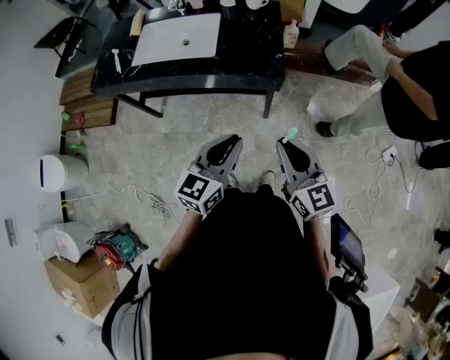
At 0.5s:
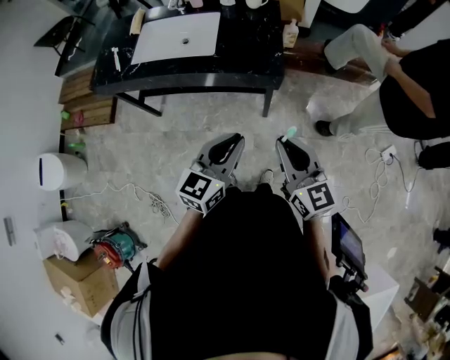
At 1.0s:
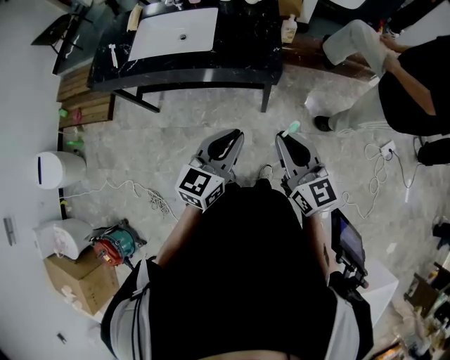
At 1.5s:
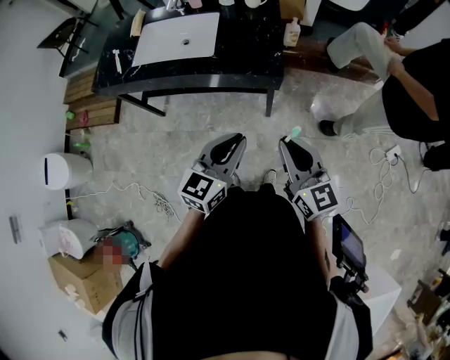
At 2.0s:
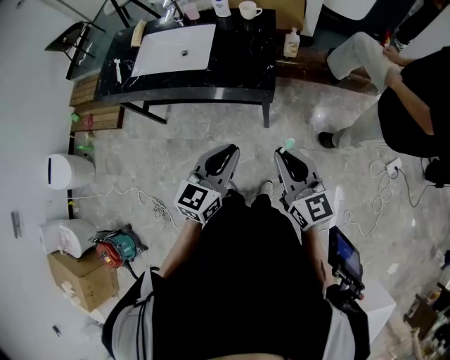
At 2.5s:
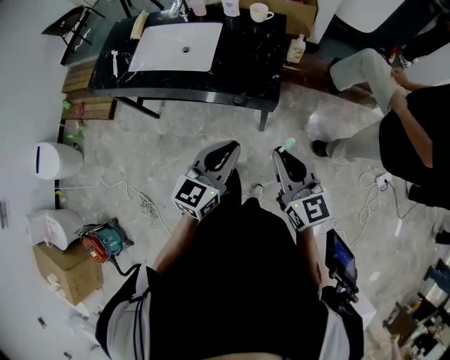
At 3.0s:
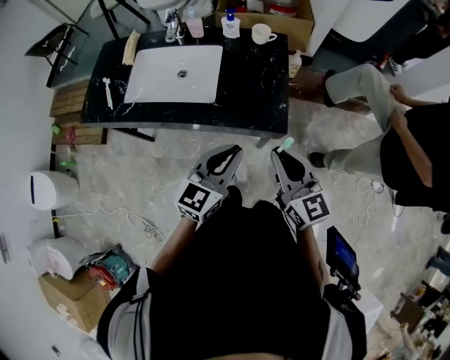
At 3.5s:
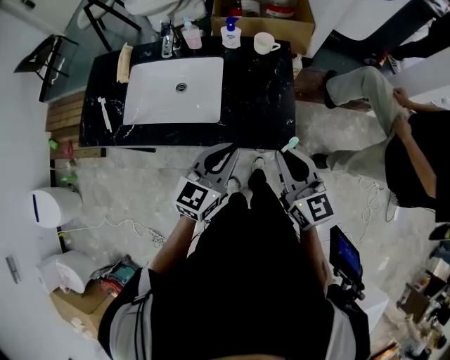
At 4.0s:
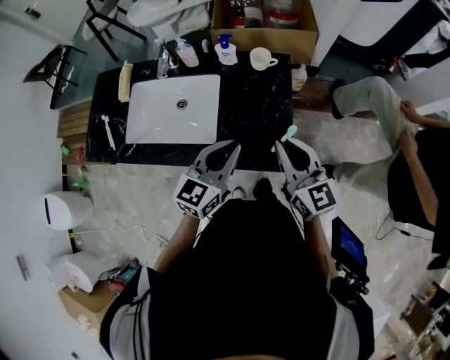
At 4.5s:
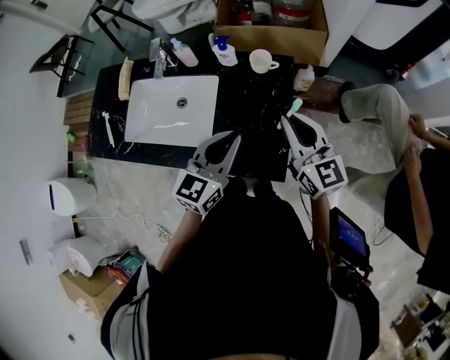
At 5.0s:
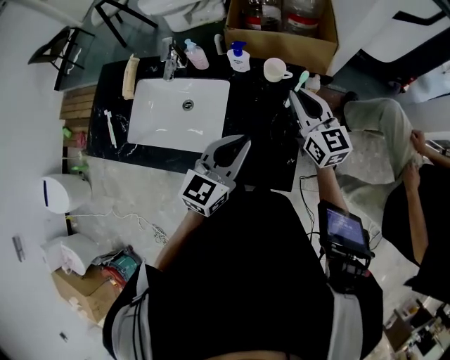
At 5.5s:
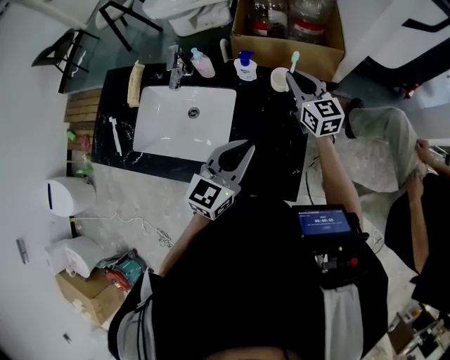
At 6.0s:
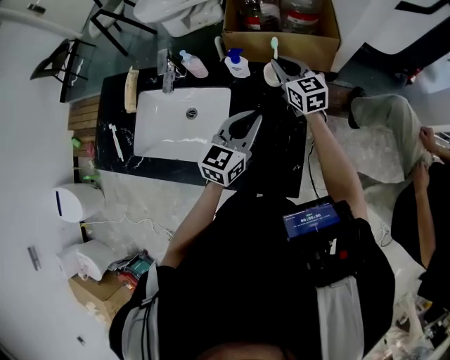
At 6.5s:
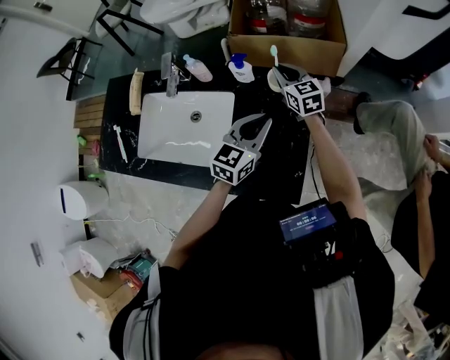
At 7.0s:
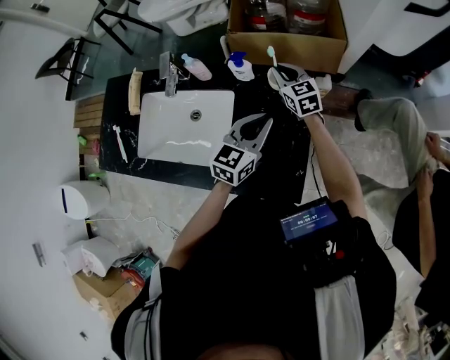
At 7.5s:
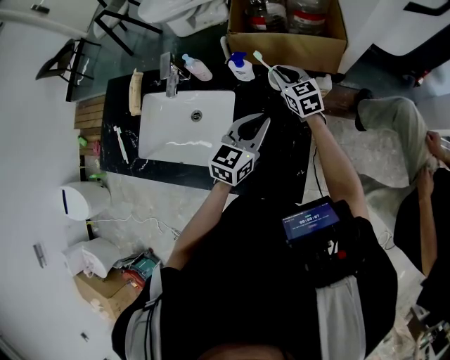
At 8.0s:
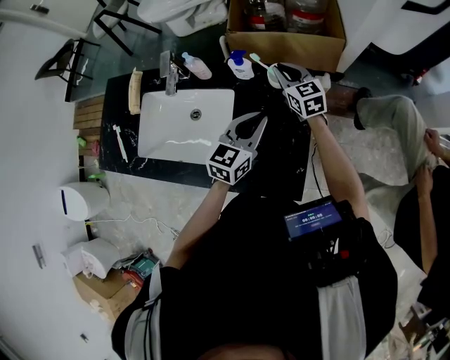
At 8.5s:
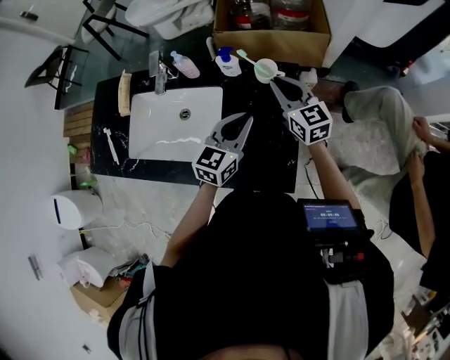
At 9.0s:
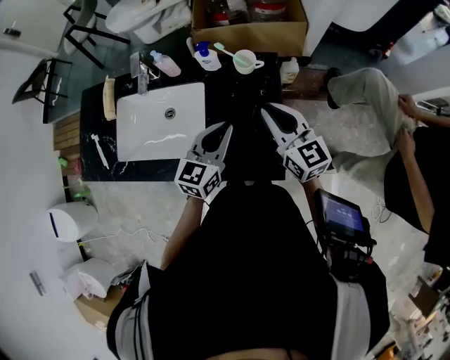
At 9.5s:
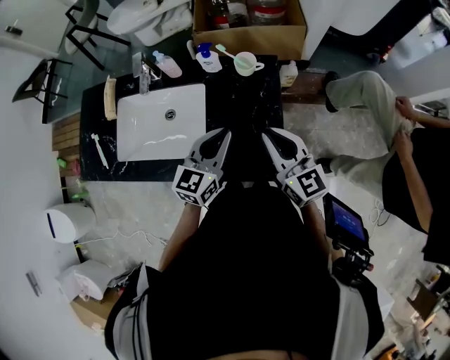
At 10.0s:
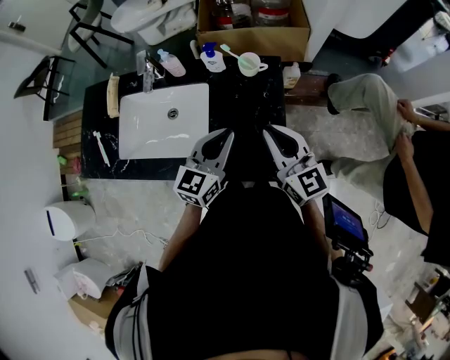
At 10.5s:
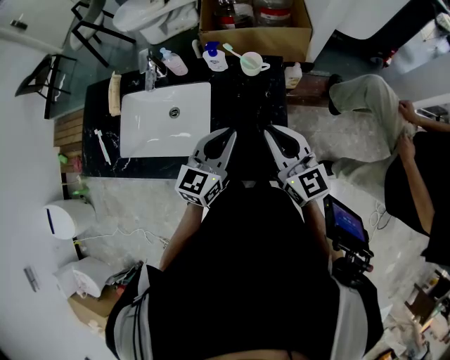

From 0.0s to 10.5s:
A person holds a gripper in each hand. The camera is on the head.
From 0.0s to 2.0s: Both grippers travel together to the right, about 5 cm.
From 2.0s to 4.0s: Both grippers travel together forward, some 35 cm.
From 4.0s to 6.5s: The right gripper goes approximately 35 cm forward; the left gripper travels forward by about 20 cm.
From 6.5s to 8.5s: The right gripper travels backward and upward by some 10 cm.
From 8.5s to 10.5s: The right gripper goes approximately 20 cm backward. Meanwhile the left gripper goes about 10 cm backward.

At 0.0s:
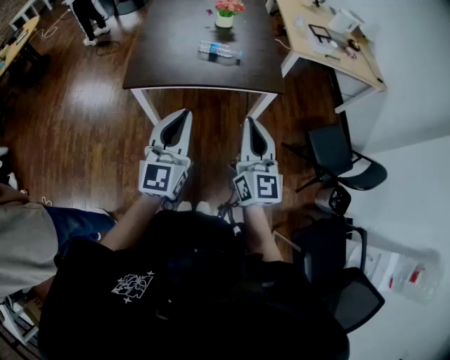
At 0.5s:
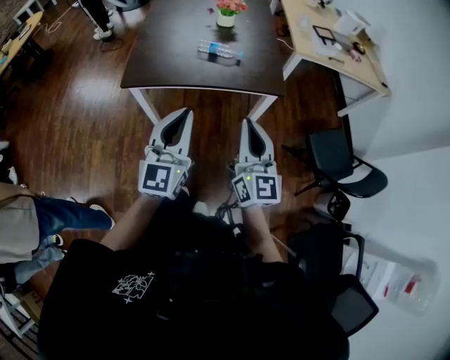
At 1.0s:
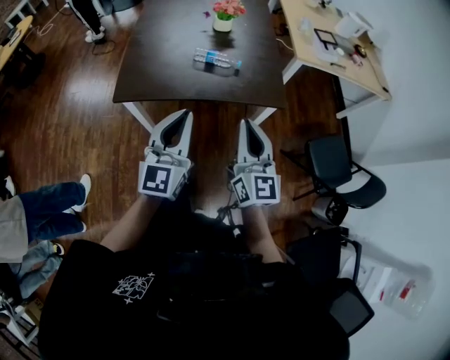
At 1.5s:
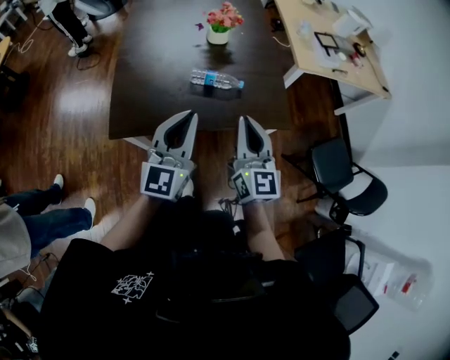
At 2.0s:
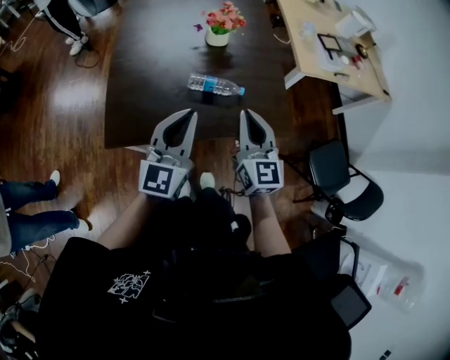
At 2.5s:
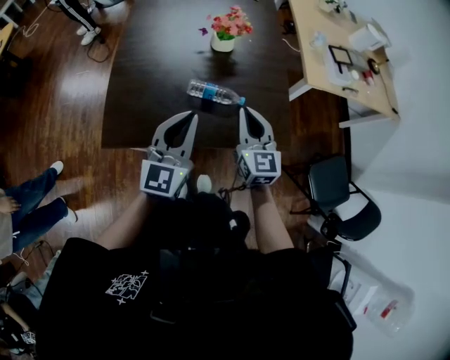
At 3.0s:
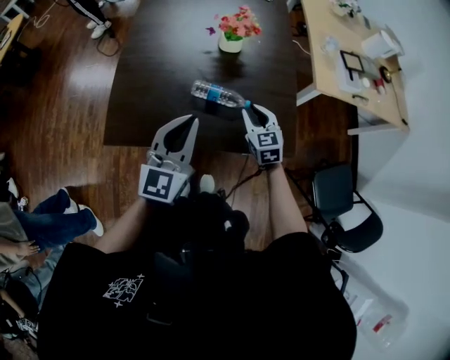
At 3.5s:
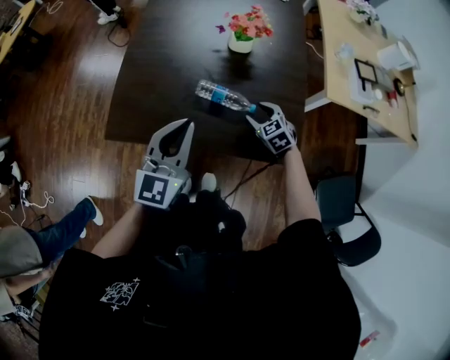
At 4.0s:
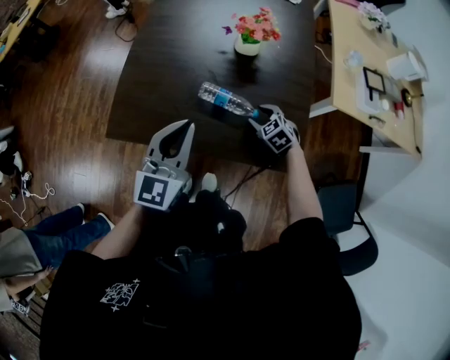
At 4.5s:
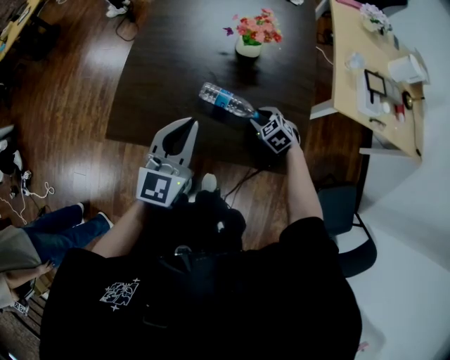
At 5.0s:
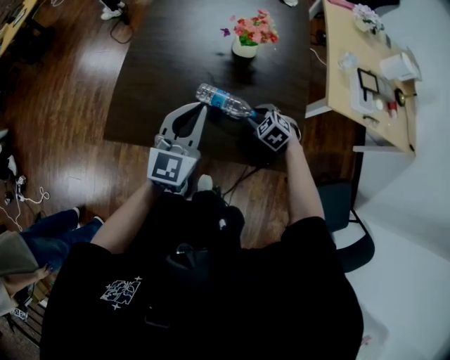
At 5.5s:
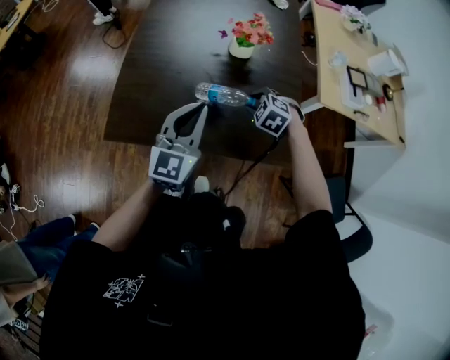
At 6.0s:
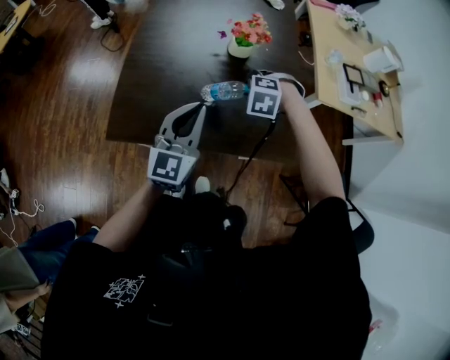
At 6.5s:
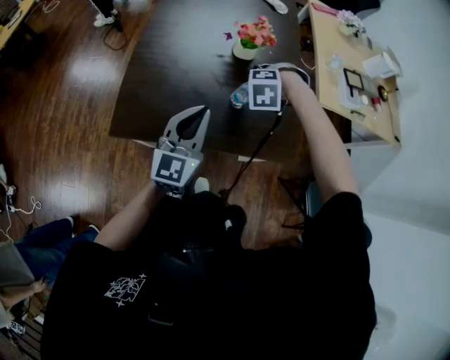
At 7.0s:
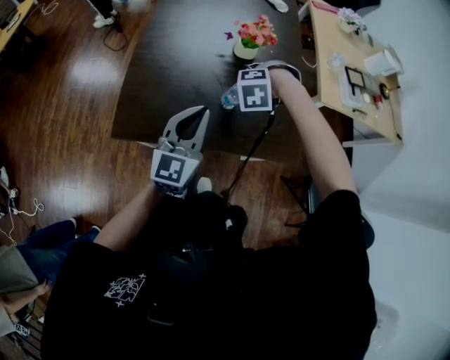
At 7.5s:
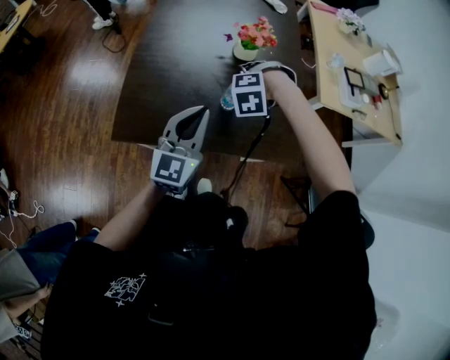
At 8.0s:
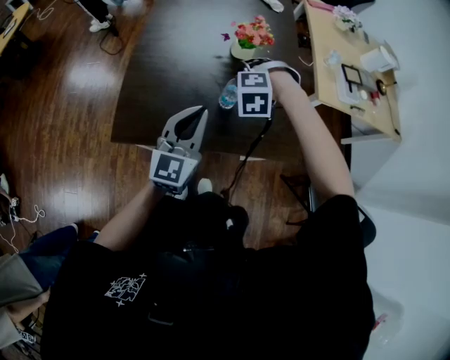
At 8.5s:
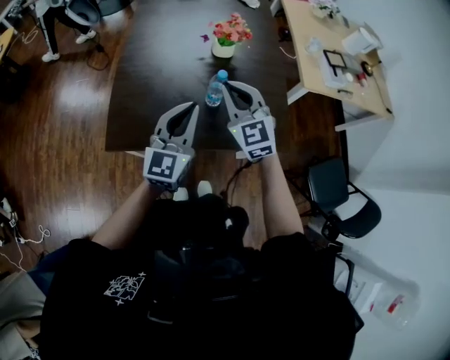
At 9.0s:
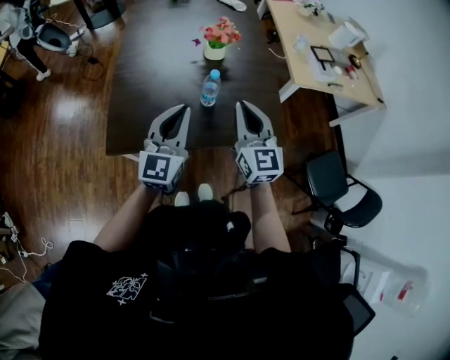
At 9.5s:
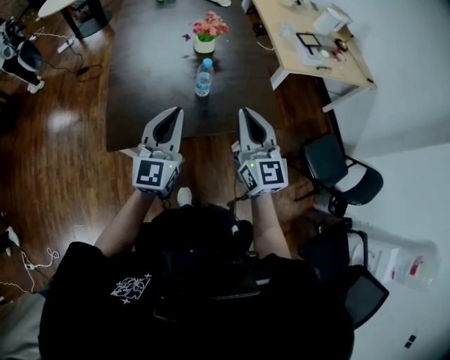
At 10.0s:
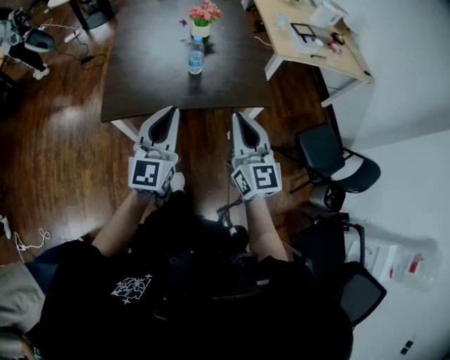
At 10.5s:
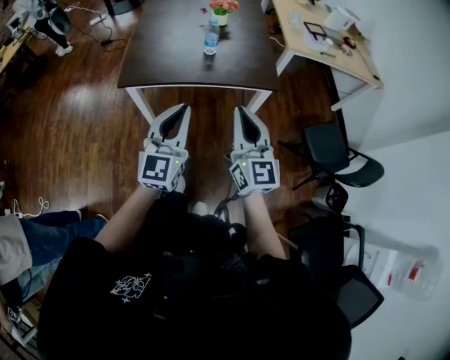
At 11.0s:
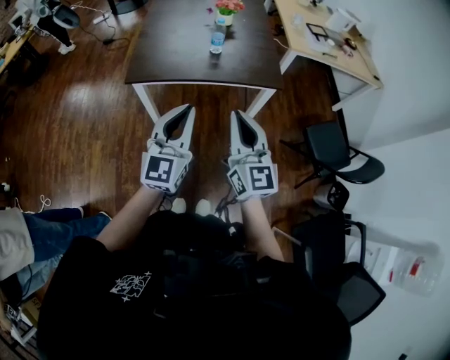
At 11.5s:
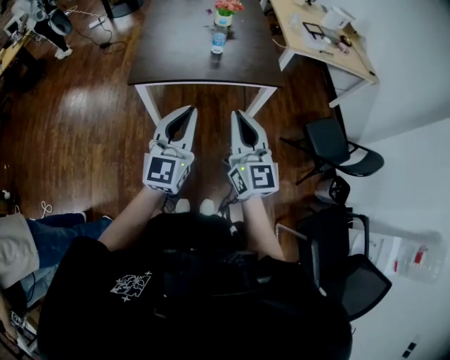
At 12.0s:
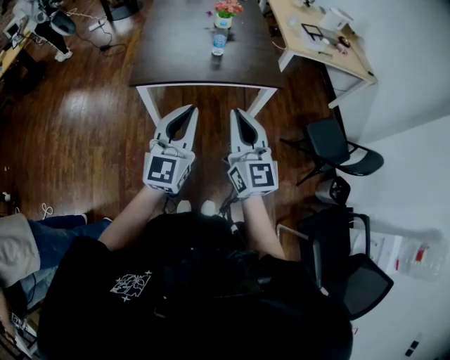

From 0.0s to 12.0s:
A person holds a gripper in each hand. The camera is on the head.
From 0.0s to 2.0s: Both grippers move forward, about 30 cm.
From 2.0s to 4.0s: The right gripper moves downward, some 30 cm, tilts its fingers some 50 degrees downward, and opens. Meanwhile the left gripper moves about 5 cm.
From 4.0s to 6.0s: The right gripper moves upward and to the left, roughly 15 cm, and turns by approximately 40 degrees.
From 6.0s to 8.0s: The right gripper ends up approximately 10 cm from where it was.
From 8.0s to 10.0s: The right gripper travels backward by roughly 35 cm, points its fingers approximately 70 degrees further upward, and closes up, while the left gripper travels backward by approximately 20 cm.
From 10.0s to 12.0s: The right gripper travels backward and to the left by approximately 20 cm, while the left gripper goes roughly 20 cm backward.

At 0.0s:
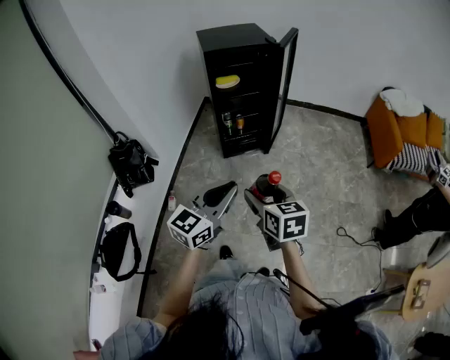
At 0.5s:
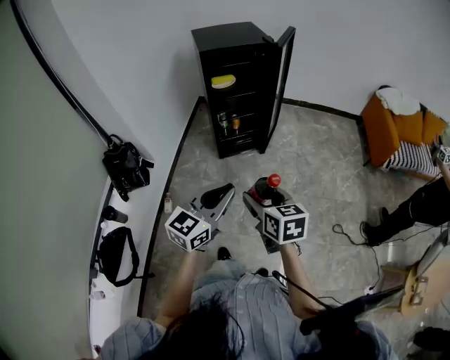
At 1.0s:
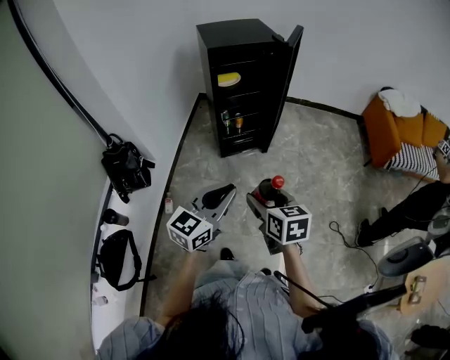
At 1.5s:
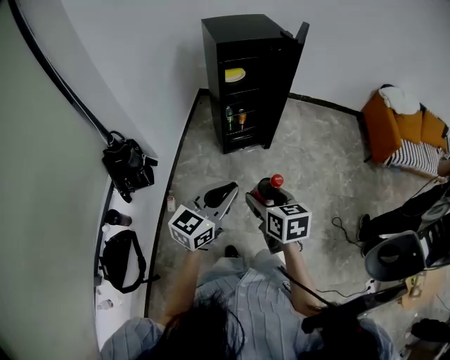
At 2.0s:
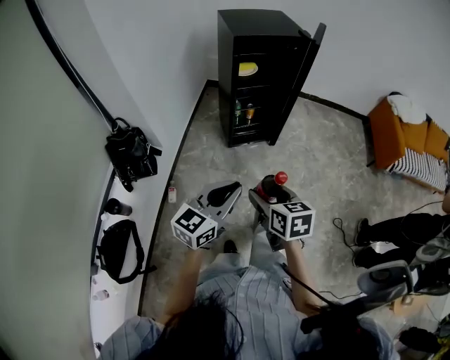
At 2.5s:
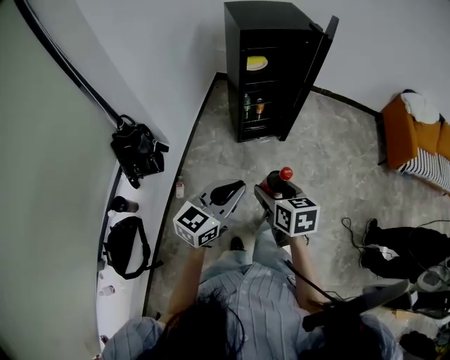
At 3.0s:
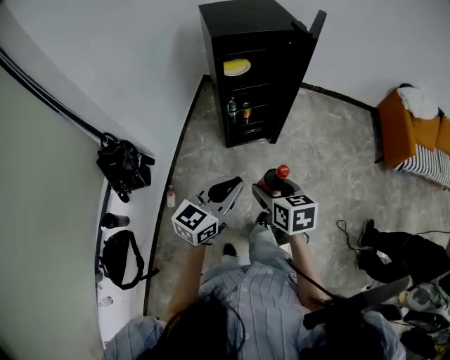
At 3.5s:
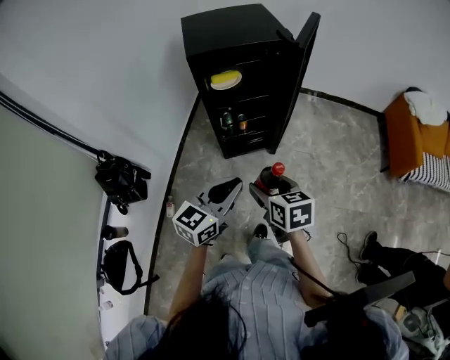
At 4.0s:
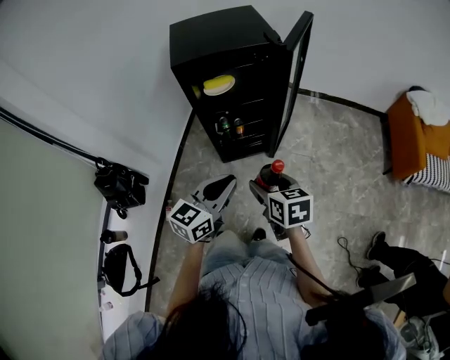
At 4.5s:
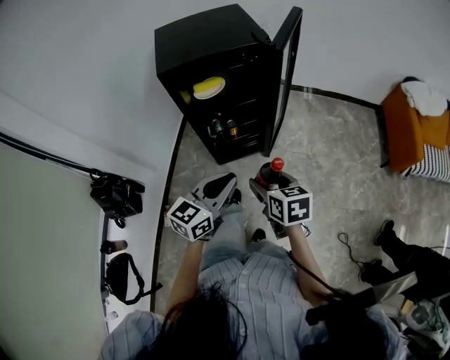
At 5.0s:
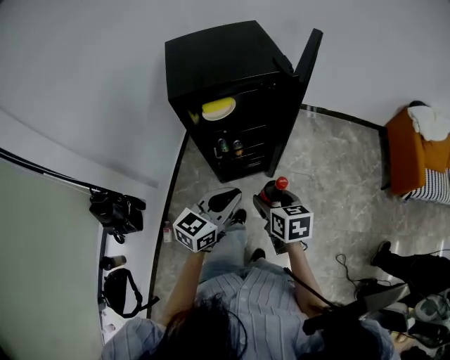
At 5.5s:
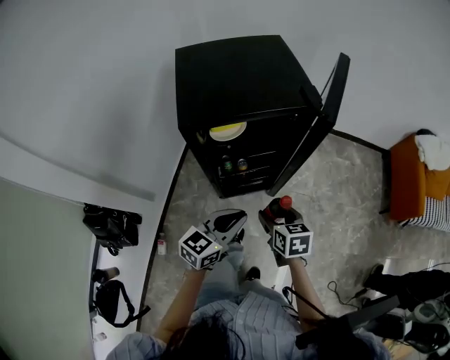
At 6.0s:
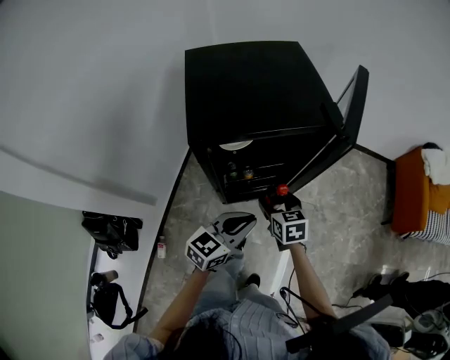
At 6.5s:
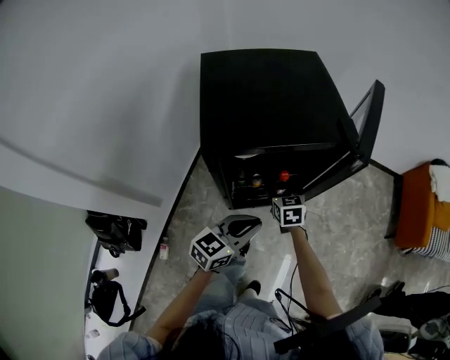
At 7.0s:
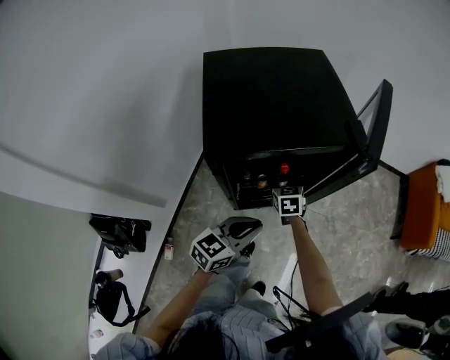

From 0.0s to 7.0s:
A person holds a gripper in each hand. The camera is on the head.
From 0.0s to 2.0s: The grippers both shift to the left by some 15 cm.
From 2.0s to 3.5s: The two grippers go roughly 25 cm forward and to the right.
From 3.5s to 5.0s: Both grippers travel together forward, about 15 cm.
From 5.0s to 7.0s: The left gripper moves forward, to the left and downward, about 15 cm; the right gripper heads forward, downward and to the left, covering roughly 35 cm, and turns by approximately 20 degrees.
